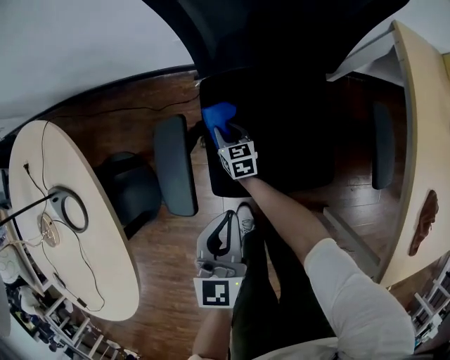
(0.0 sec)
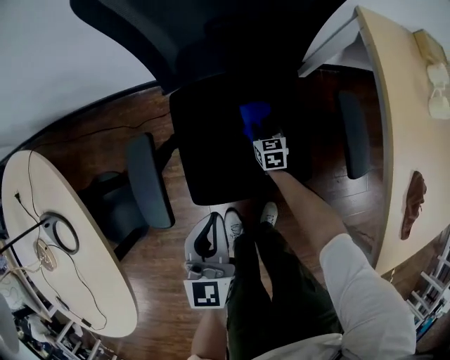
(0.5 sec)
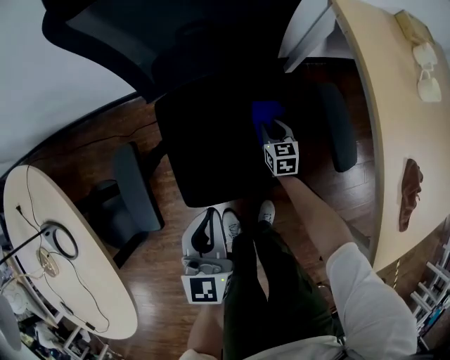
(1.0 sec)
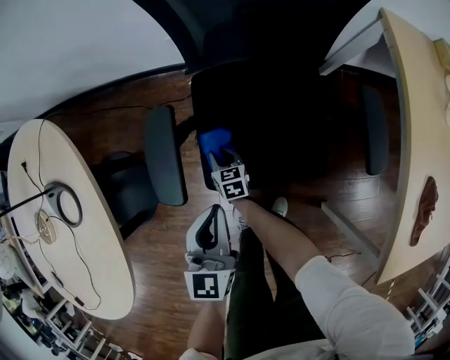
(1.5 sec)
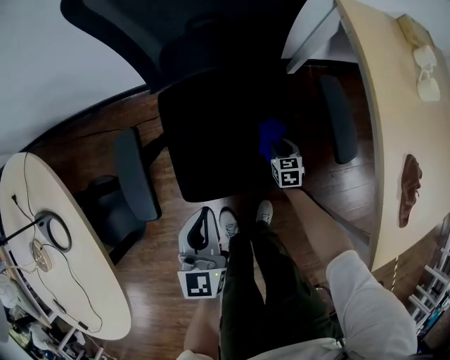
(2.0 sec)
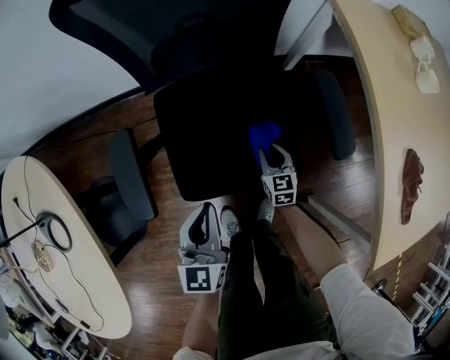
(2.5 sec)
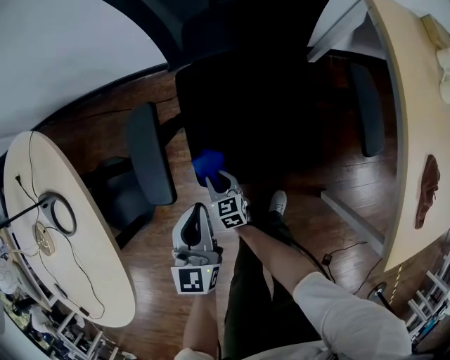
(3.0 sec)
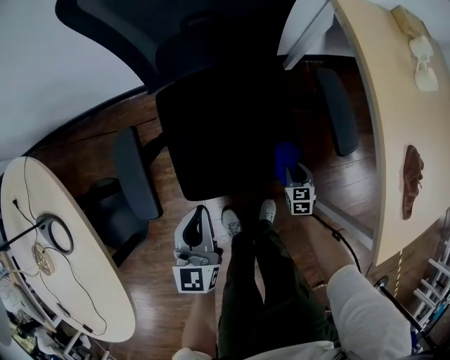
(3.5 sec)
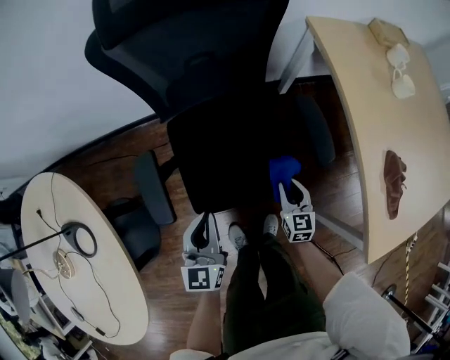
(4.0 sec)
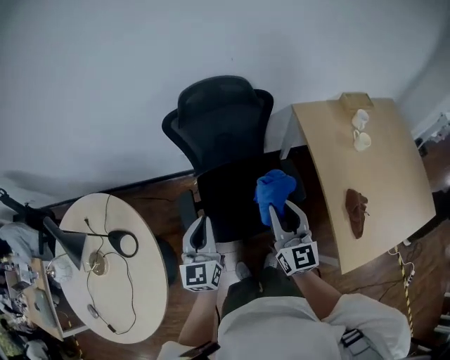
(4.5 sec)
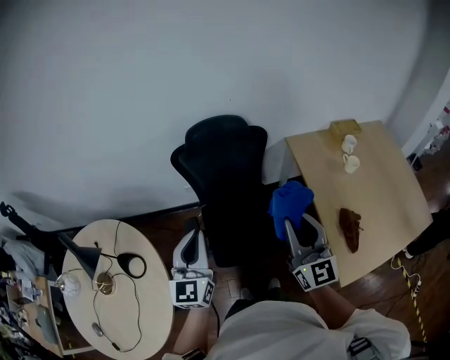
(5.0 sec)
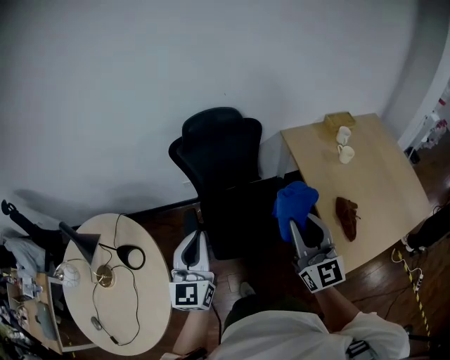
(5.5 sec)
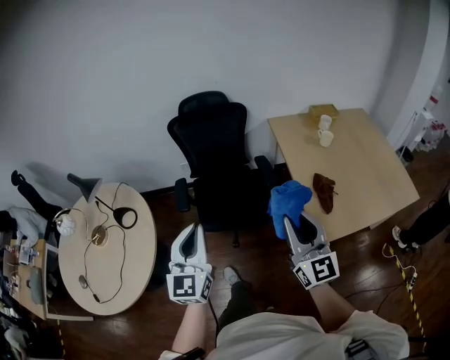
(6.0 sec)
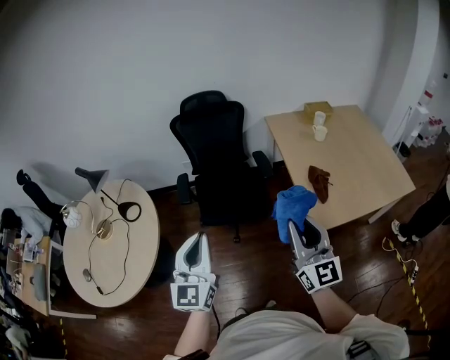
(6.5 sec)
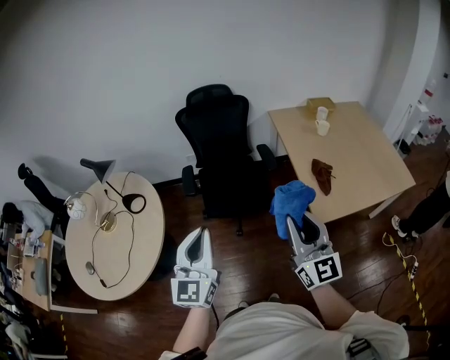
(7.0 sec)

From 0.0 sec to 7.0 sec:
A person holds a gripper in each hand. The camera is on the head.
From 0.0 sec to 2.0 sec: The left gripper goes to the right and returns, roughly 5 cm each way; the right gripper moves left and right over roughly 30 cm, changing direction 2 times, and rotates roughly 20 degrees.
From 2.0 sec to 3.5 sec: The right gripper travels backward by roughly 10 cm, and moves approximately 30 cm to the left and comes back, while the left gripper travels to the left and back again, some 5 cm each way.
From 3.5 sec to 5.0 sec: The left gripper travels upward by some 60 cm; the right gripper goes roughly 1 m upward, and tips its fingers upward by roughly 60 degrees.
From 5.0 sec to 7.0 sec: Both grippers are carried backward, about 50 cm.

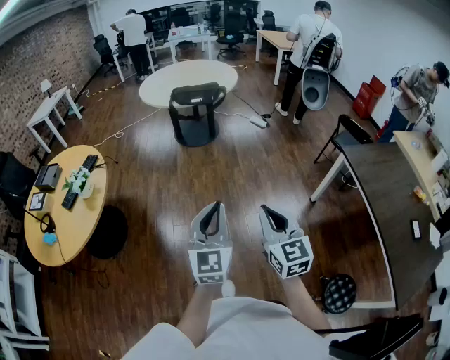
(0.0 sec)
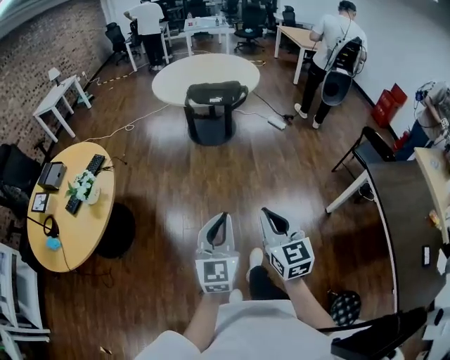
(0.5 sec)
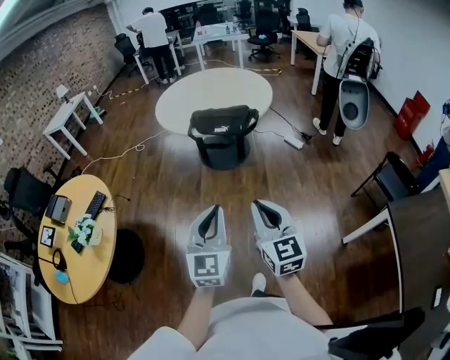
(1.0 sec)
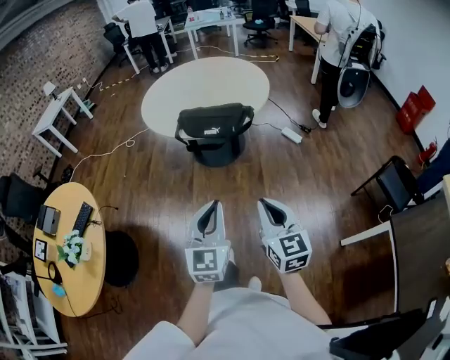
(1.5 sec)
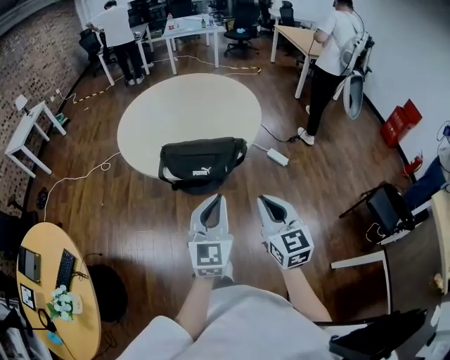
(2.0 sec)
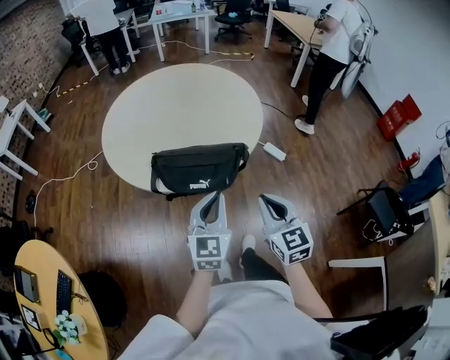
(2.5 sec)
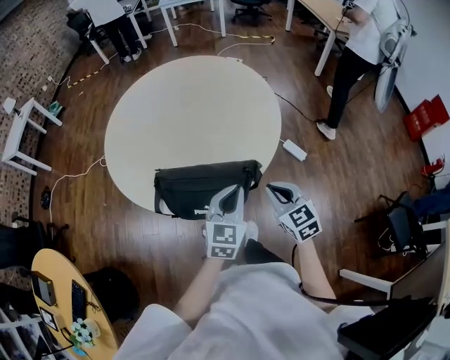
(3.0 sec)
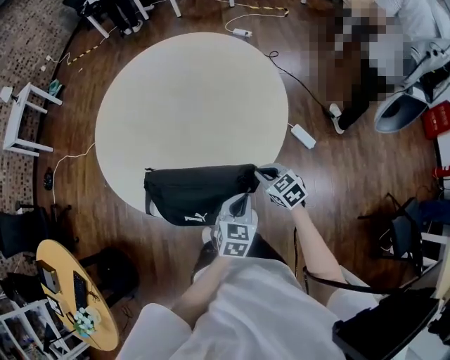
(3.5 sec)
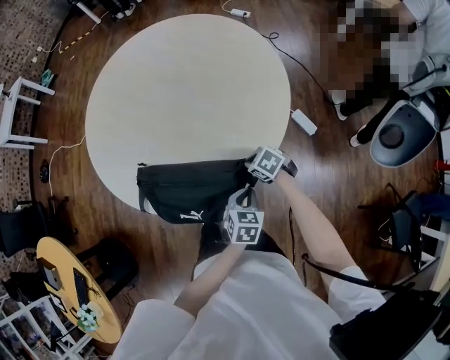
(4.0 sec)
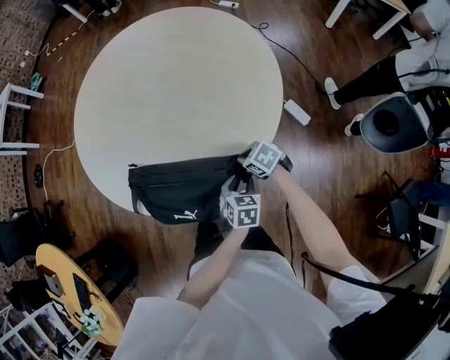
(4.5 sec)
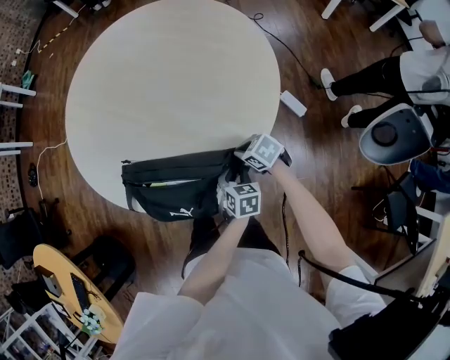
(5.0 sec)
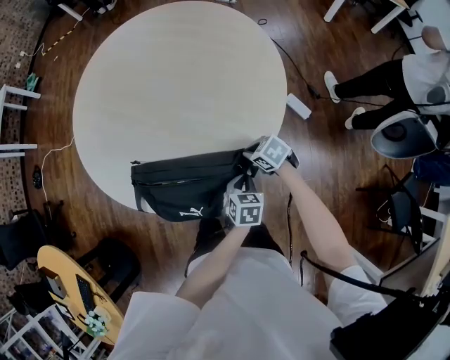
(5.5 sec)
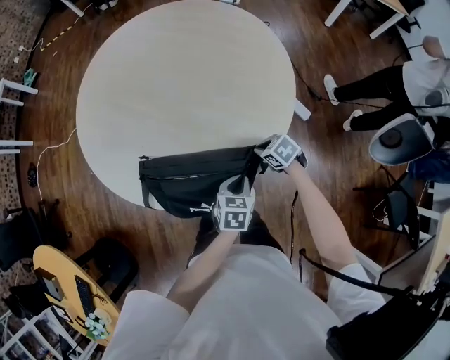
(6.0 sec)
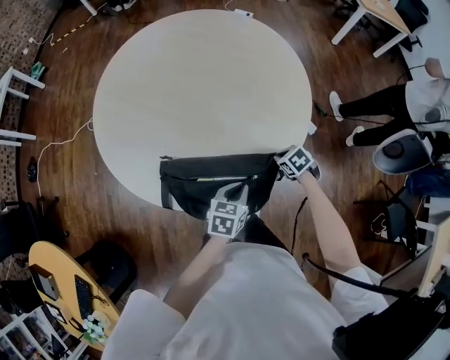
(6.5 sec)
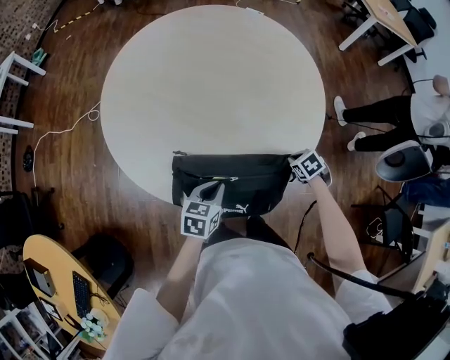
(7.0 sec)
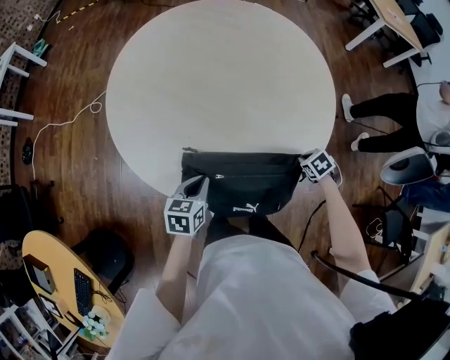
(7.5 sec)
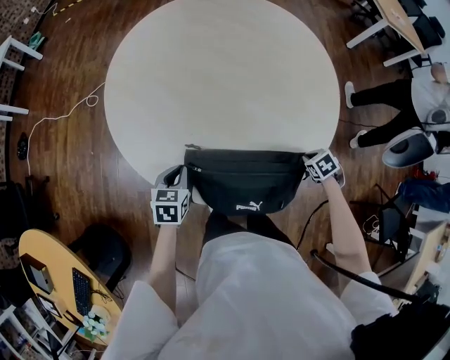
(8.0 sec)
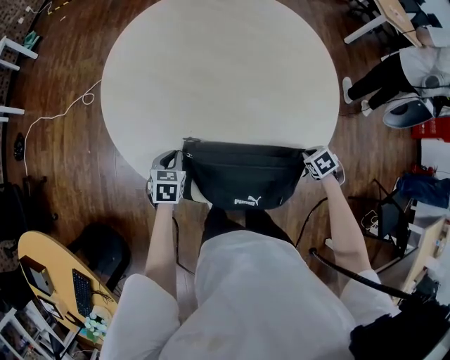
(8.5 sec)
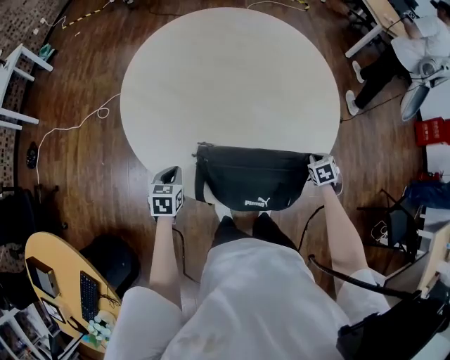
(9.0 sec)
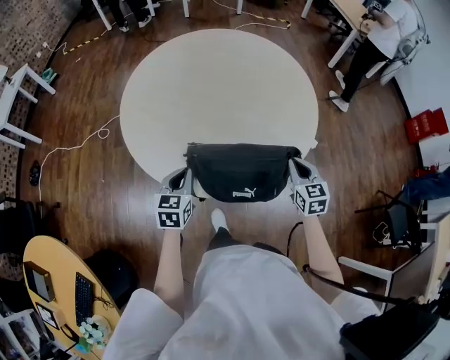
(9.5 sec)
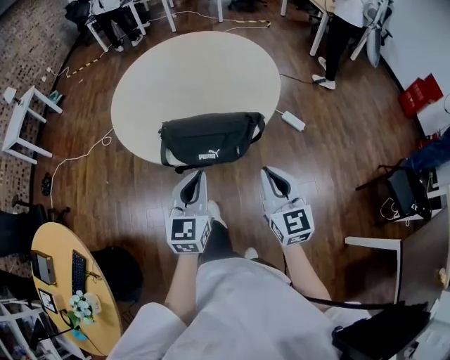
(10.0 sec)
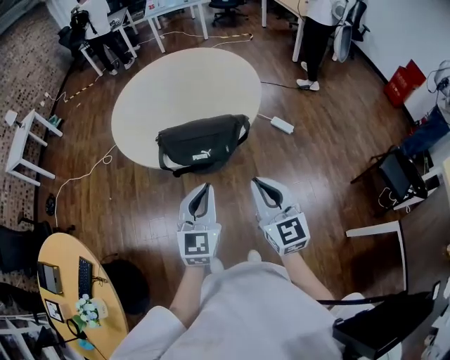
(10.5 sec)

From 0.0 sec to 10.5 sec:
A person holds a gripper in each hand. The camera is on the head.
From 0.0 sec to 2.0 sec: Both grippers are carried forward, some 80 cm.
From 2.0 sec to 4.0 sec: Both grippers are carried approximately 40 cm. The right gripper tilts its fingers about 50 degrees downward, while the left gripper tilts its fingers roughly 50 degrees downward.
From 4.0 sec to 6.5 sec: The right gripper turns by approximately 20 degrees. Meanwhile the left gripper moves some 15 cm, and opens, then closes once more.
From 6.5 sec to 8.5 sec: The left gripper shifts by roughly 35 cm, and swivels approximately 20 degrees.
From 8.5 sec to 10.5 sec: The right gripper moves roughly 60 cm, and angles its fingers upward, by about 80 degrees; the left gripper ends up about 60 cm from where it was, and angles its fingers upward, by roughly 40 degrees.

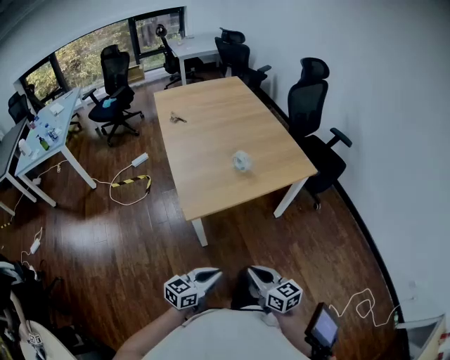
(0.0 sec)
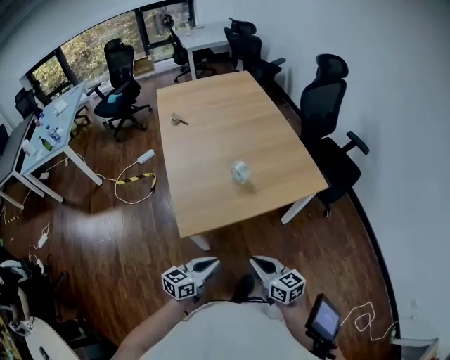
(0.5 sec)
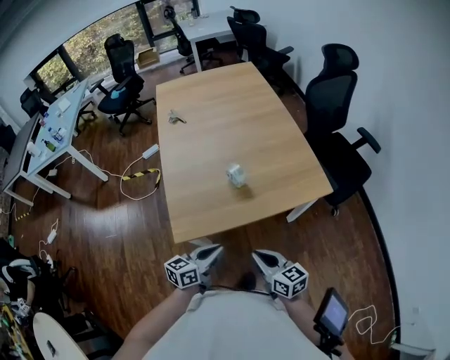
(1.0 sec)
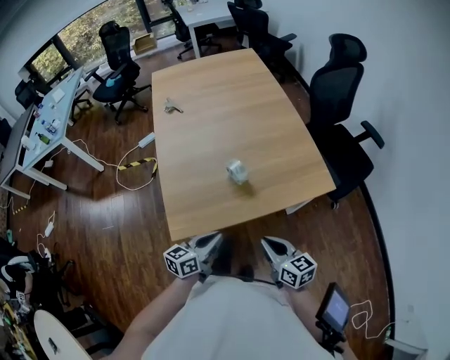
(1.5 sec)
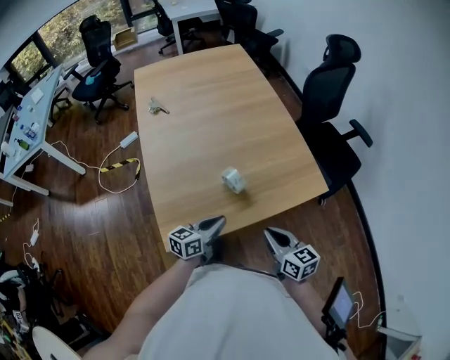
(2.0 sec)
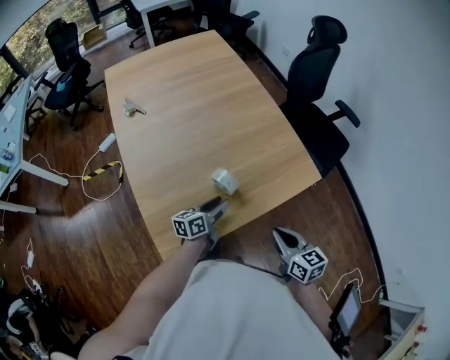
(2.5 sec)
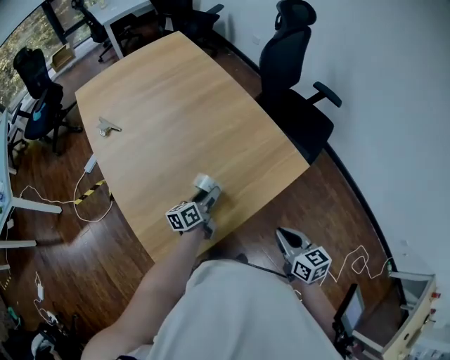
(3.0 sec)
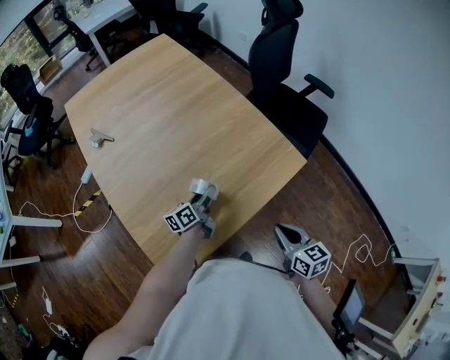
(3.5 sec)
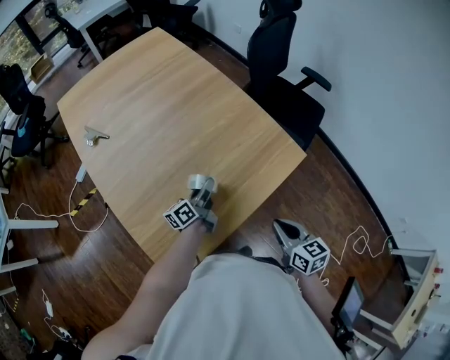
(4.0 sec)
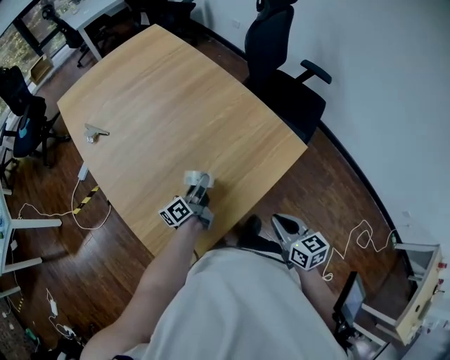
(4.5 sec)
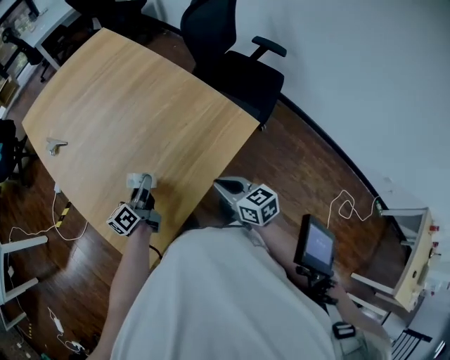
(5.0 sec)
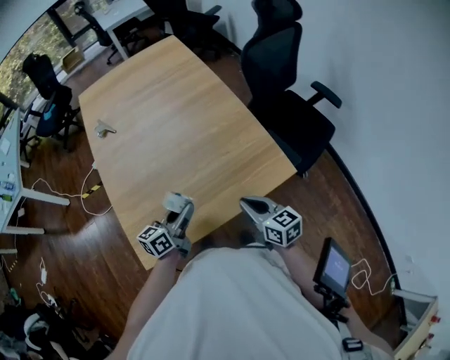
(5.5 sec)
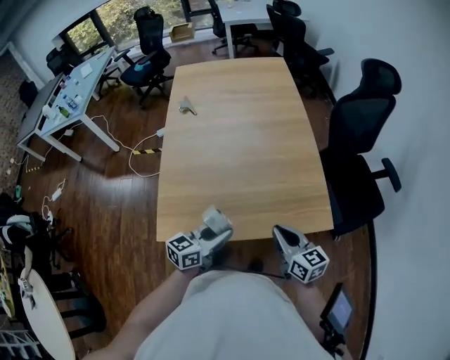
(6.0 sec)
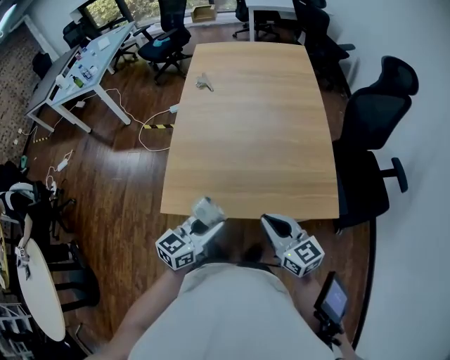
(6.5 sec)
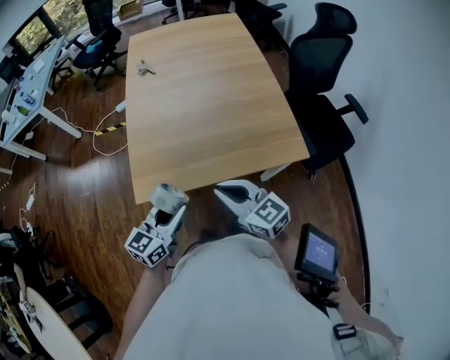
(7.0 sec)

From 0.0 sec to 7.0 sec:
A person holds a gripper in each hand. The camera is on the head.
From 0.0 sec to 2.0 sec: Both grippers travel together forward, approximately 35 cm.
From 2.0 sec to 3.5 sec: The right gripper travels to the right by approximately 5 cm, and rotates about 20 degrees; the left gripper goes approximately 15 cm forward, changes its angle by some 20 degrees, and opens.
From 3.5 sec to 5.0 sec: The left gripper moves upward, approximately 5 cm, and closes up; the right gripper travels forward by some 5 cm.
From 5.0 sec to 7.0 sec: The left gripper changes place by some 30 cm, and changes its angle by roughly 40 degrees; the right gripper changes place by about 15 cm, and swivels about 50 degrees.

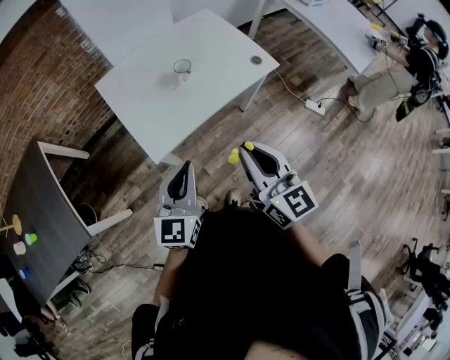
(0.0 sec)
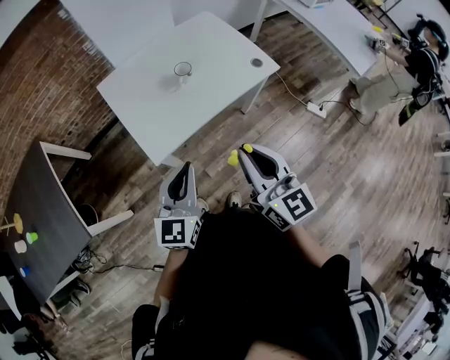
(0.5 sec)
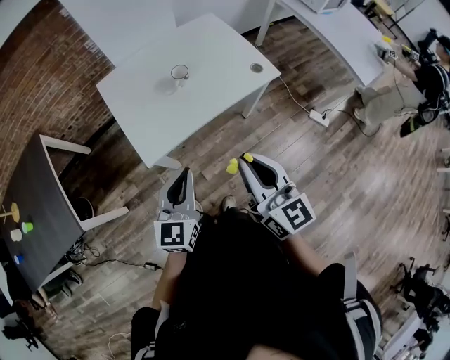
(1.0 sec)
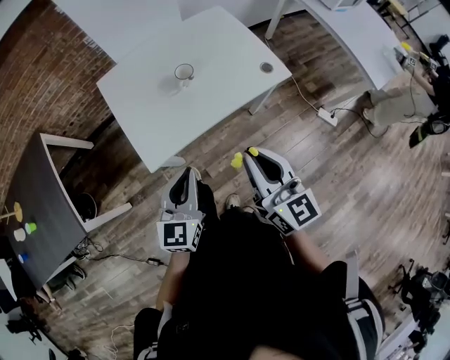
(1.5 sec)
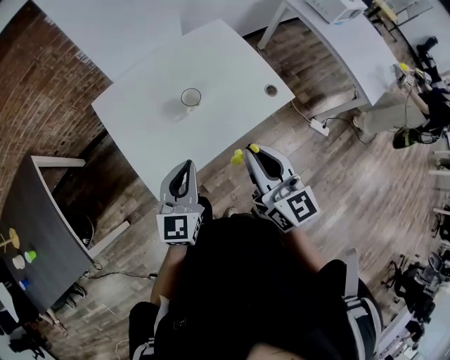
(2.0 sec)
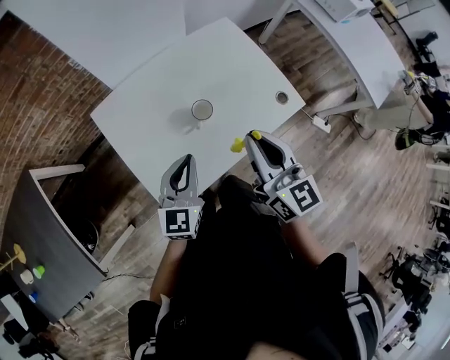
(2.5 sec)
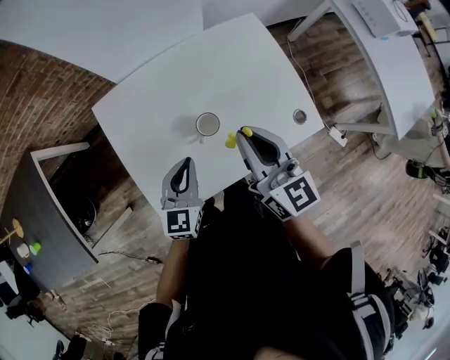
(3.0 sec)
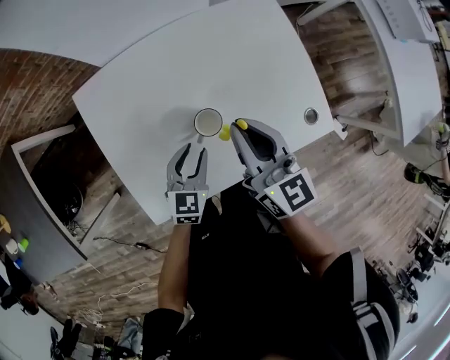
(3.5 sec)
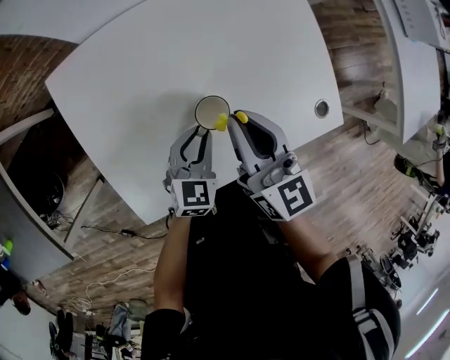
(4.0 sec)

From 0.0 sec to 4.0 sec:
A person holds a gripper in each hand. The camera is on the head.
From 0.0 sec to 2.0 sec: Both grippers travel together forward, about 20 cm.
From 2.0 sec to 4.0 sec: The right gripper shifts roughly 30 cm forward and downward; the left gripper shifts roughly 30 cm downward and forward, and swivels some 20 degrees.
